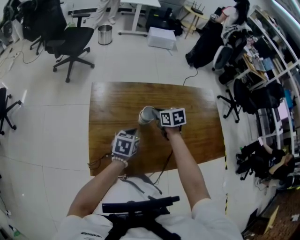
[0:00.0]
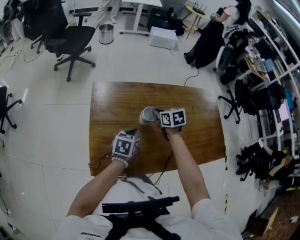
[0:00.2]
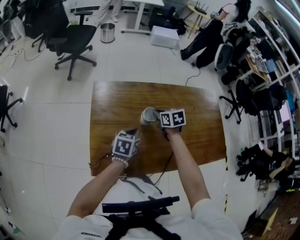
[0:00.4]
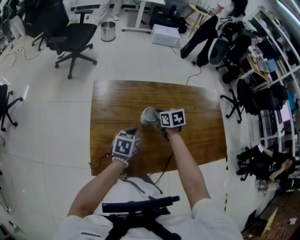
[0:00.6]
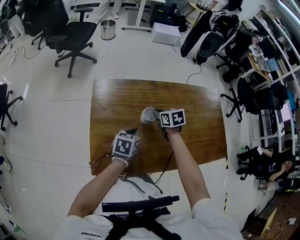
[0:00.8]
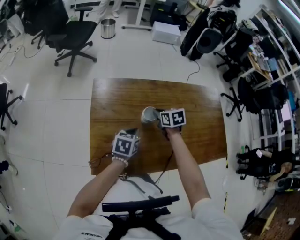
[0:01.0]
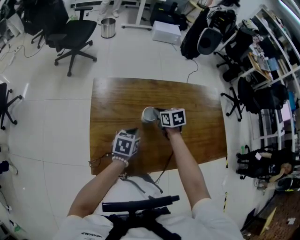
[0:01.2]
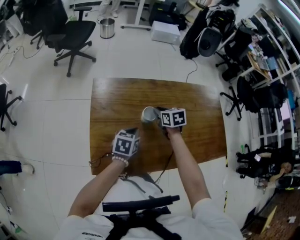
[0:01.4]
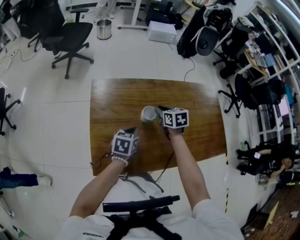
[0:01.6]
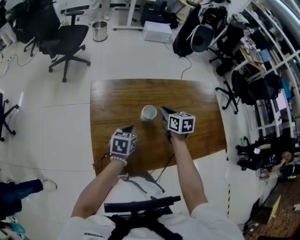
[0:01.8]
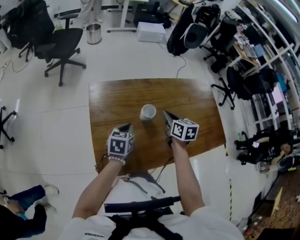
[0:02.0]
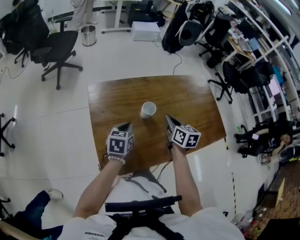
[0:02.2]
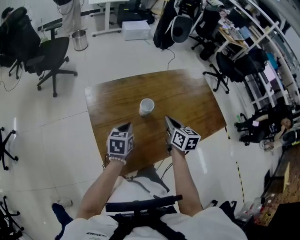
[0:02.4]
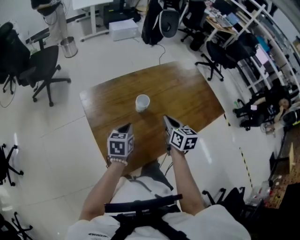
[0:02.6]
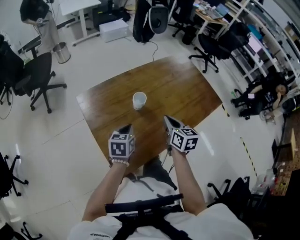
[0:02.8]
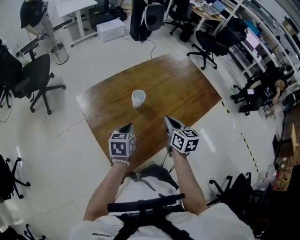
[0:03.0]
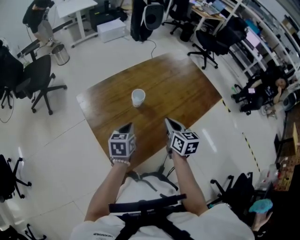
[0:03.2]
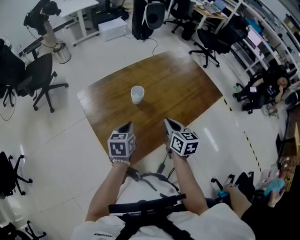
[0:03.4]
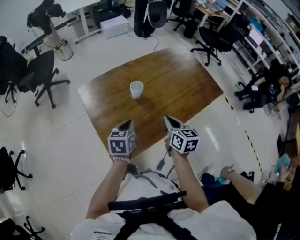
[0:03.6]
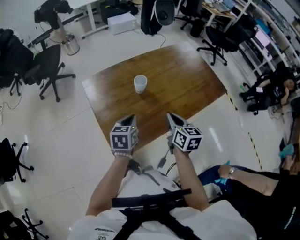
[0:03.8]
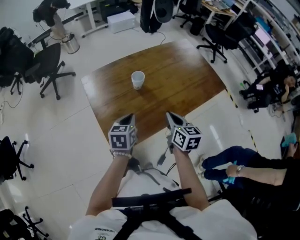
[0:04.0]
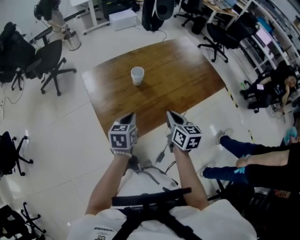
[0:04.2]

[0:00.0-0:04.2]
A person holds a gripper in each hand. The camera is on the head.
0:00.0 to 0:01.4: The grippers move only a little.
0:01.4 to 0:02.8: The right gripper changes place by roughly 20 cm, turns by approximately 40 degrees, and closes its fingers; the left gripper moves about 5 cm.
0:02.8 to 0:04.2: Both grippers travel together backward, approximately 10 cm.

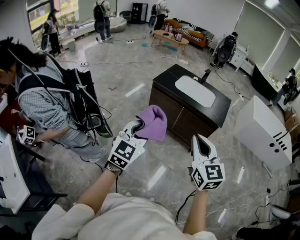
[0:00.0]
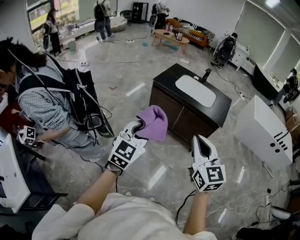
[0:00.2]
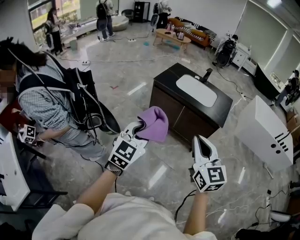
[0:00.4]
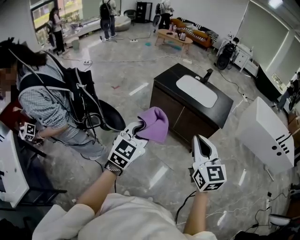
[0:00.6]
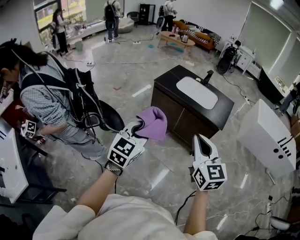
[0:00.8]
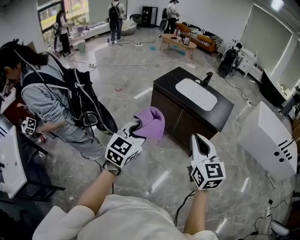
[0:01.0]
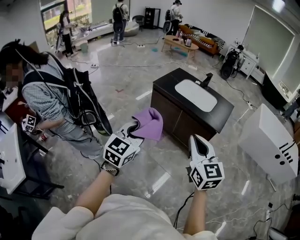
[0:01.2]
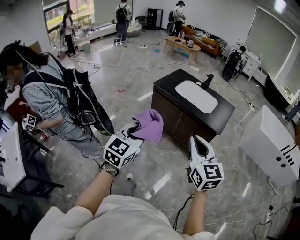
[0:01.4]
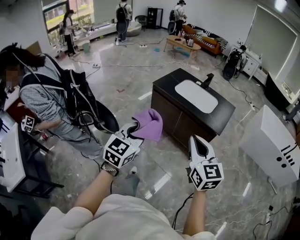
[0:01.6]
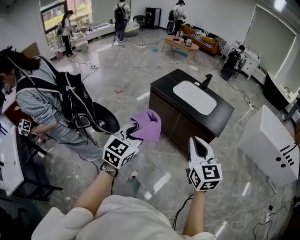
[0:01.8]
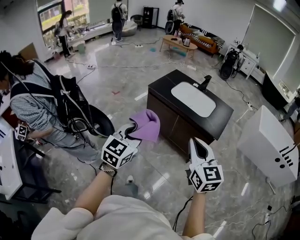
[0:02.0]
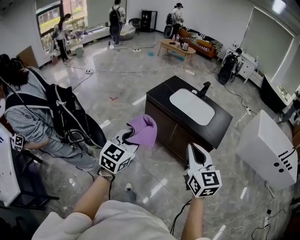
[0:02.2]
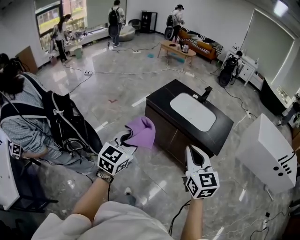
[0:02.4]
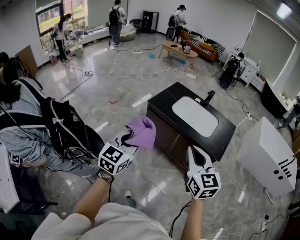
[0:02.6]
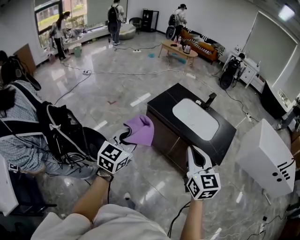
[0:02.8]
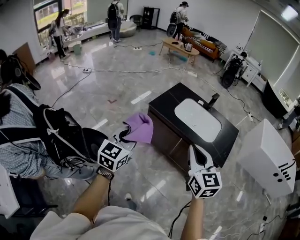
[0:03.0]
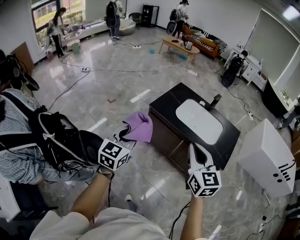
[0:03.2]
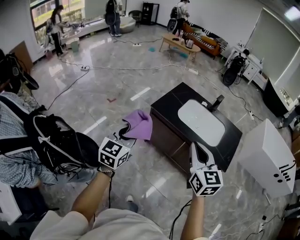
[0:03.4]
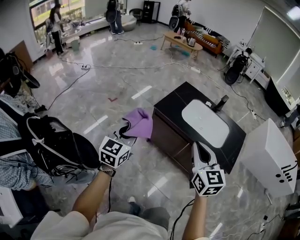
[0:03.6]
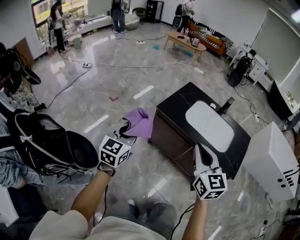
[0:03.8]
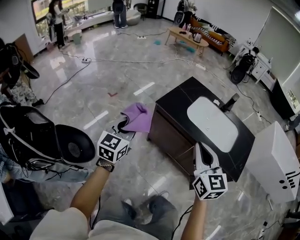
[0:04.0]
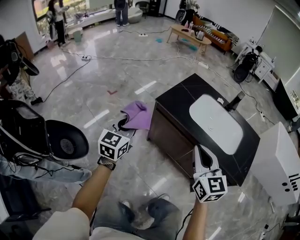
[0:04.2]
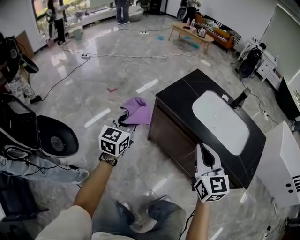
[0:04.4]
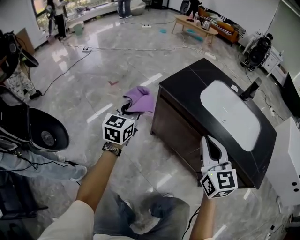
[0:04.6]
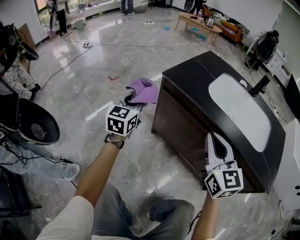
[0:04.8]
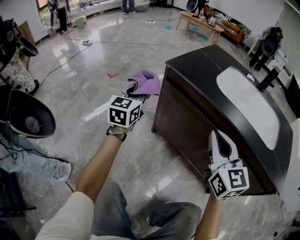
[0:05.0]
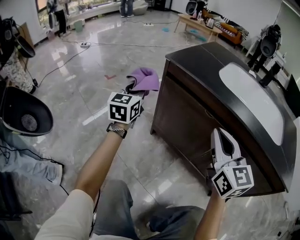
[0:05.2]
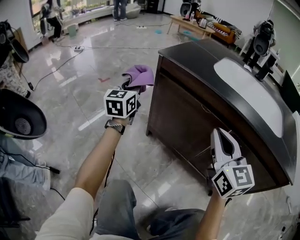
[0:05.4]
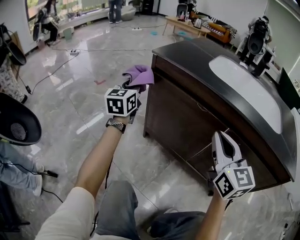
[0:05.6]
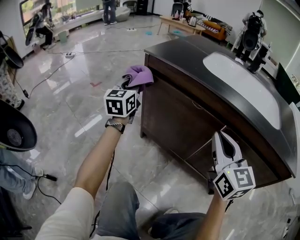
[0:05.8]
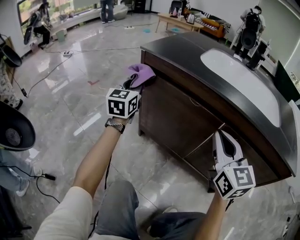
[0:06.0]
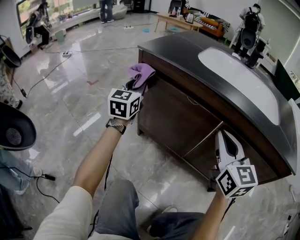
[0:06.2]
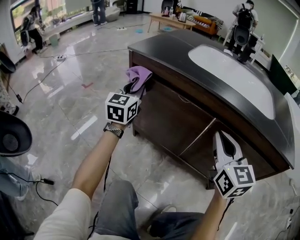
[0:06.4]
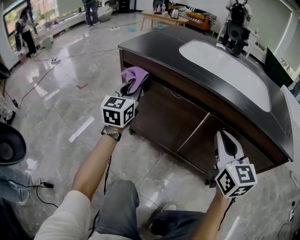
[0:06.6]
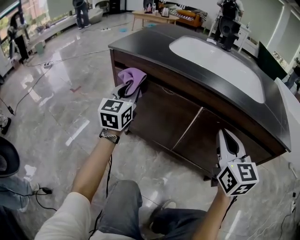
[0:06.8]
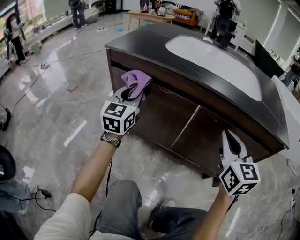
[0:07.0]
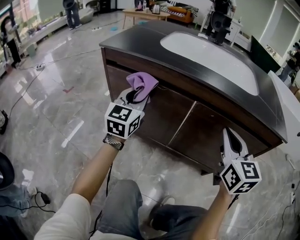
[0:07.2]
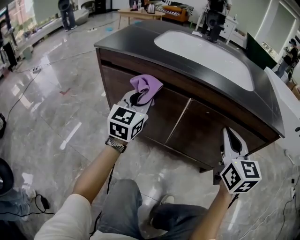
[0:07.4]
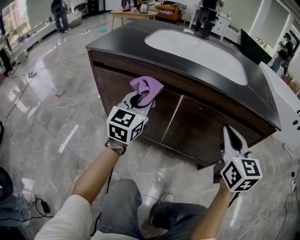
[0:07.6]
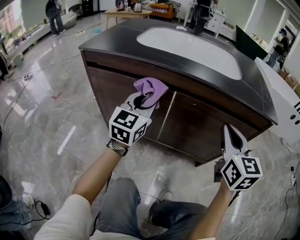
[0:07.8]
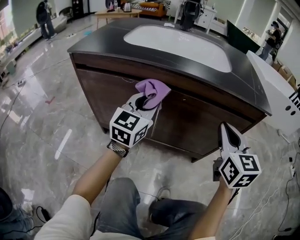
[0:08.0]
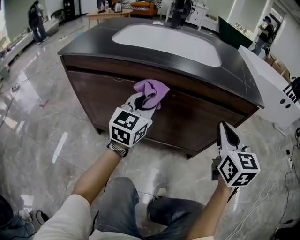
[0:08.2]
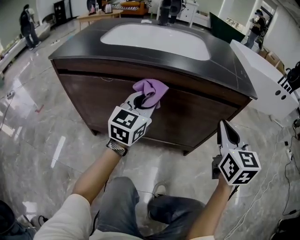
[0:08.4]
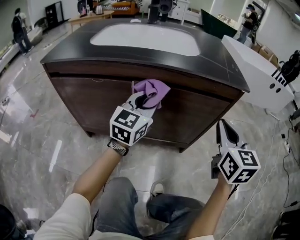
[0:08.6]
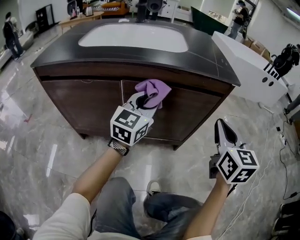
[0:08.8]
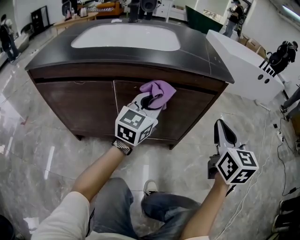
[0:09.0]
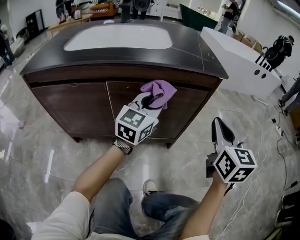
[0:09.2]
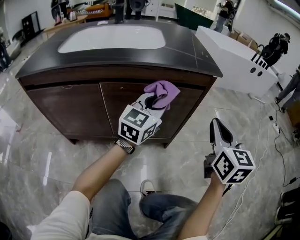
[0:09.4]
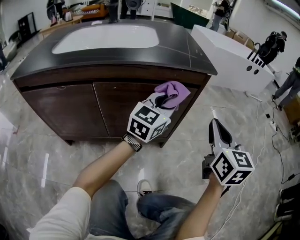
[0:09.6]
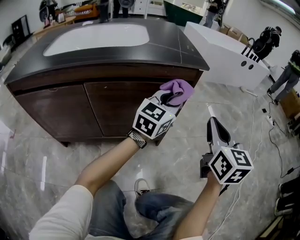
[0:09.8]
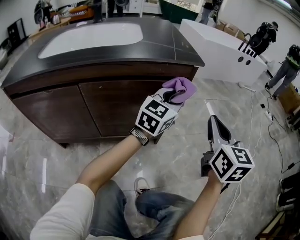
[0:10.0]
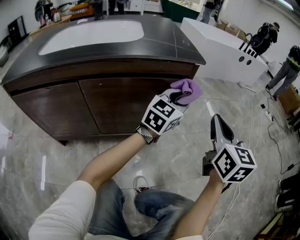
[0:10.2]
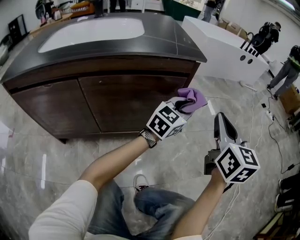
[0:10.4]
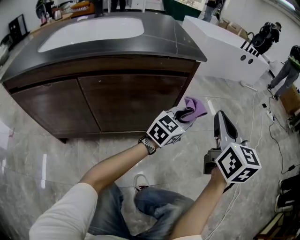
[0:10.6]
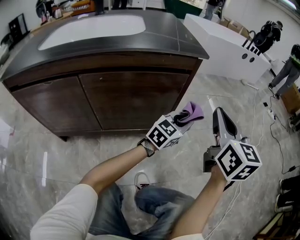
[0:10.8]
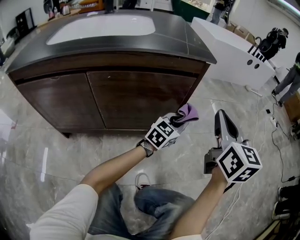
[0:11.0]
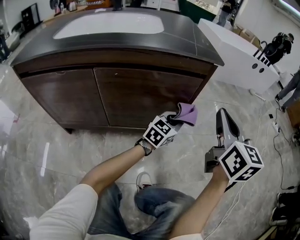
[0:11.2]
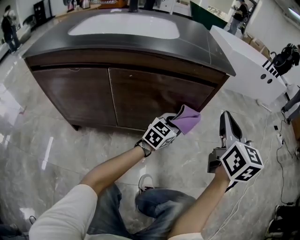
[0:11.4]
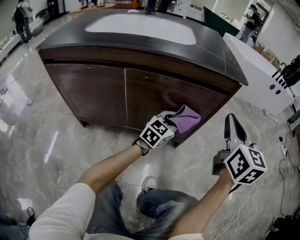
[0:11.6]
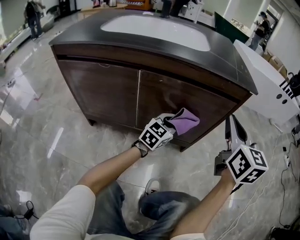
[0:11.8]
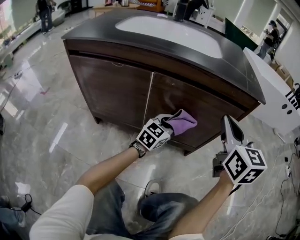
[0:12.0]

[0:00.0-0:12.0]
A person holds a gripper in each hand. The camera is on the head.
0:00.0 to 0:01.6: Both grippers move to the right, approximately 10 cm.
0:01.6 to 0:03.0: The right gripper shifts some 30 cm forward. Meanwhile the left gripper shifts roughly 30 cm forward and to the left.
0:03.0 to 0:04.4: The left gripper is displaced forward and downward by about 40 cm; the right gripper moves downward and forward, about 35 cm.
0:04.4 to 0:06.0: The left gripper shifts some 35 cm downward and forward. Meanwhile the right gripper moves downward, some 30 cm.
0:06.0 to 0:07.6: The left gripper ends up roughly 25 cm from where it was, and rotates roughly 30 degrees. Meanwhile the right gripper ends up roughly 20 cm from where it was, and turns by some 20 degrees.
0:07.6 to 0:09.0: Both grippers travel together to the right, roughly 25 cm. The right gripper turns by approximately 20 degrees. The left gripper rotates some 30 degrees.
0:09.0 to 0:10.4: The right gripper travels to the right by approximately 10 cm. Meanwhile the left gripper shifts some 25 cm to the right, and rotates some 30 degrees.
0:10.4 to 0:12.0: The right gripper moves approximately 20 cm, and changes its angle by some 30 degrees. The left gripper changes place by some 30 cm, and turns by some 30 degrees.

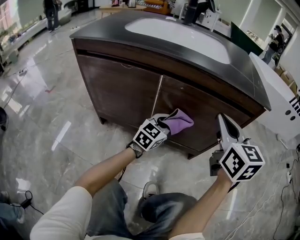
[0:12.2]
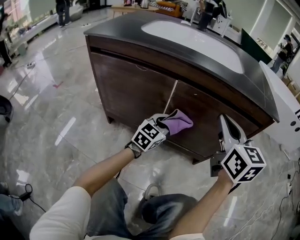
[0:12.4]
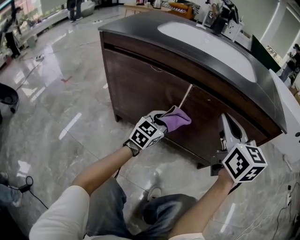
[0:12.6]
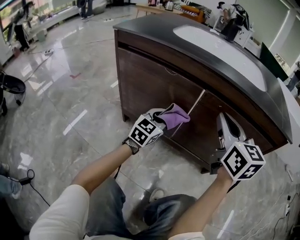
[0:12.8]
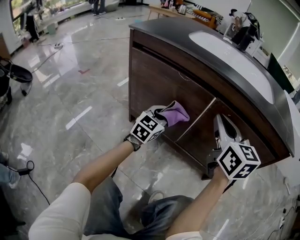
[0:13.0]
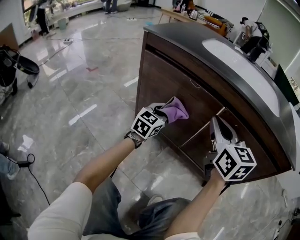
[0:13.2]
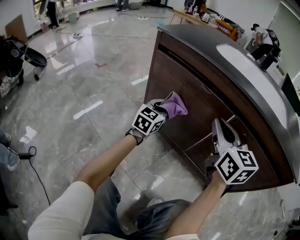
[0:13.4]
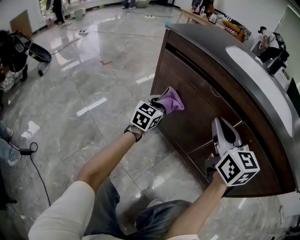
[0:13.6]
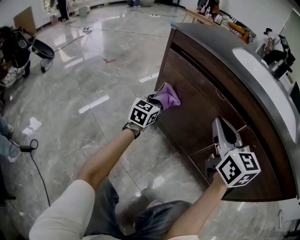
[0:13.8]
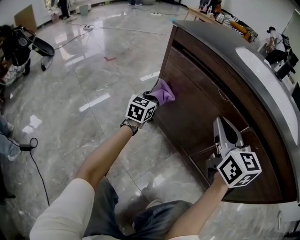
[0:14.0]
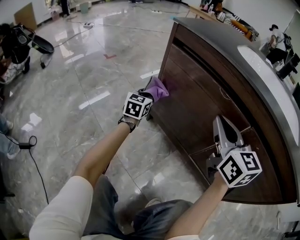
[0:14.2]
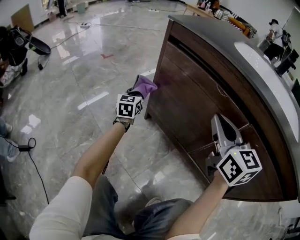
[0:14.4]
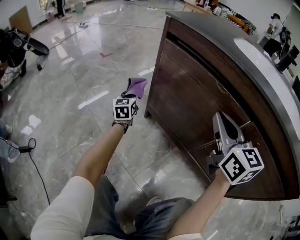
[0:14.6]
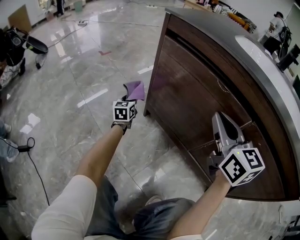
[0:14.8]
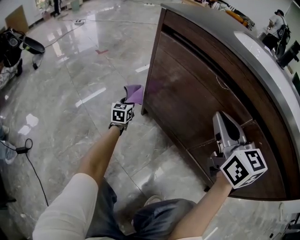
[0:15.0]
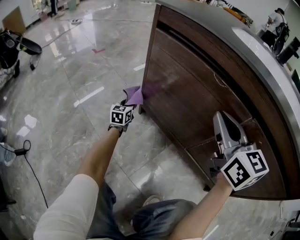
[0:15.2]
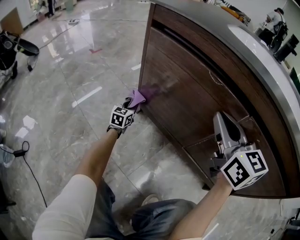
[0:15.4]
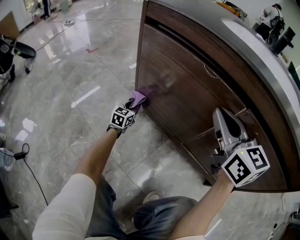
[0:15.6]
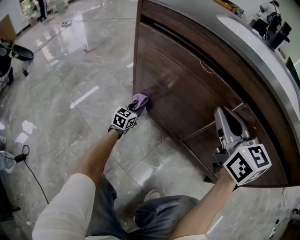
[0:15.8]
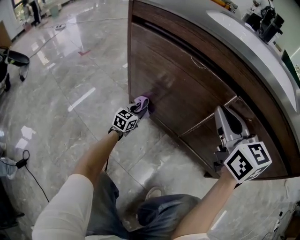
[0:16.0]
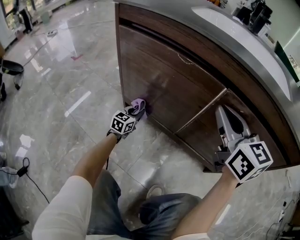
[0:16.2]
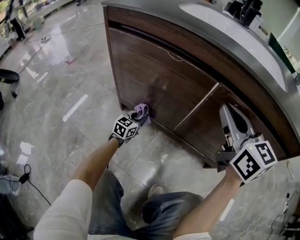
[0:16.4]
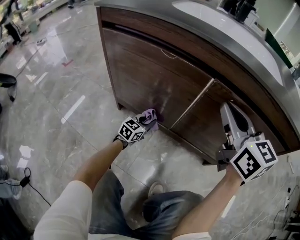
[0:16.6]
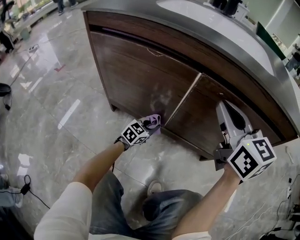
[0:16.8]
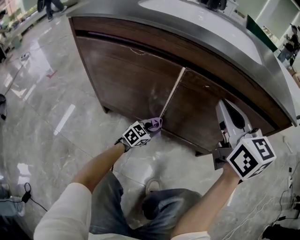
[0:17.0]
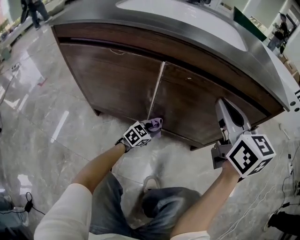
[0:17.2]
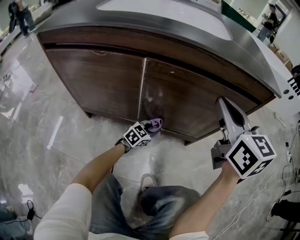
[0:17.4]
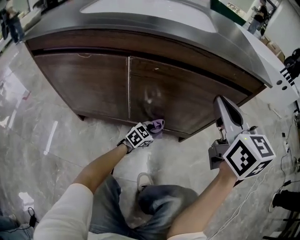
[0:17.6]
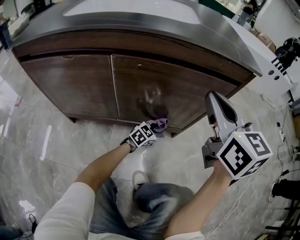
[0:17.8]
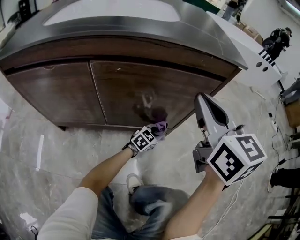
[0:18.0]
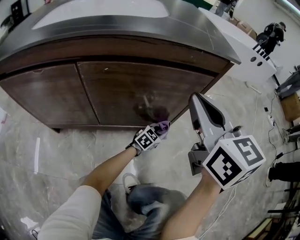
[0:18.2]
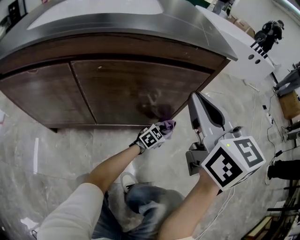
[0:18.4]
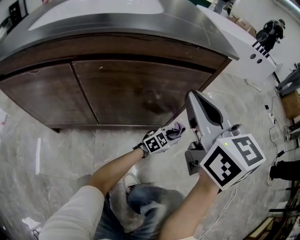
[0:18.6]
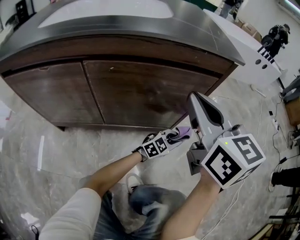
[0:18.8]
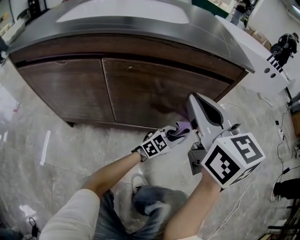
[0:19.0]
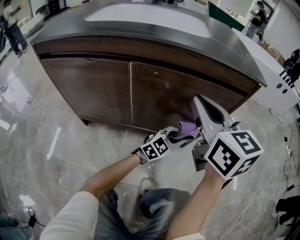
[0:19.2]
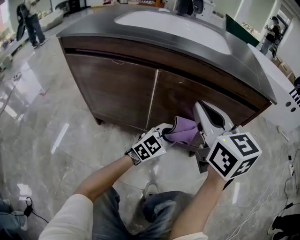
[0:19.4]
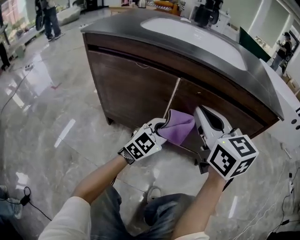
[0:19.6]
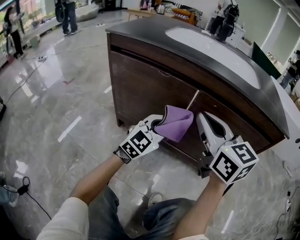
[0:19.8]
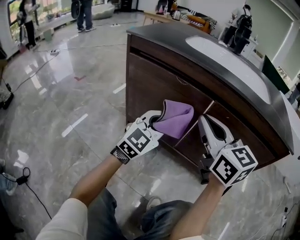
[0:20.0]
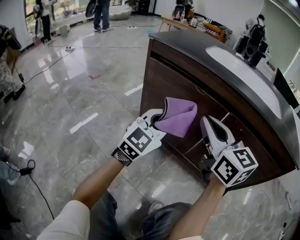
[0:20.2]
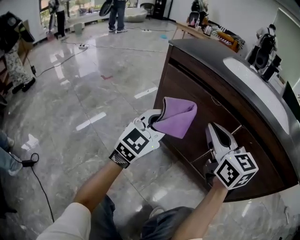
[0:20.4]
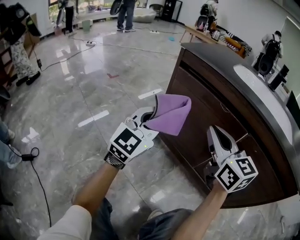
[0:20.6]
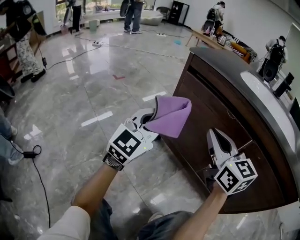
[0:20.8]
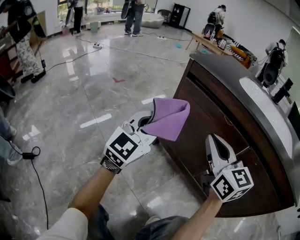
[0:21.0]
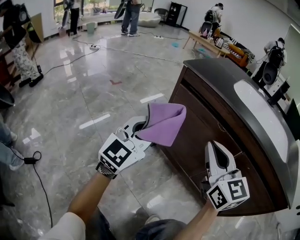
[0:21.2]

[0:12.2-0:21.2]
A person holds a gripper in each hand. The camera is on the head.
0:12.2 to 0:13.8: The left gripper moves approximately 40 cm, and rotates approximately 50 degrees. The right gripper shifts by some 30 cm, and rotates some 30 degrees.
0:13.8 to 0:15.2: The left gripper shifts about 20 cm downward.
0:15.2 to 0:16.6: The left gripper ends up roughly 30 cm from where it was, and swivels some 50 degrees. Meanwhile the right gripper moves roughly 15 cm.
0:16.6 to 0:18.2: The left gripper changes place by roughly 50 cm, and changes its angle by some 40 degrees. The right gripper changes place by about 25 cm, and changes its angle by about 30 degrees.
0:18.2 to 0:19.8: The right gripper moves some 25 cm, and swivels about 40 degrees; the left gripper changes place by some 50 cm, and rotates roughly 40 degrees.
0:19.8 to 0:21.2: The left gripper heads to the left and upward, covering approximately 30 cm, and swivels approximately 30 degrees. The right gripper goes about 15 cm to the left.
